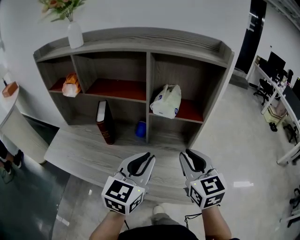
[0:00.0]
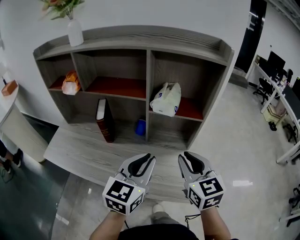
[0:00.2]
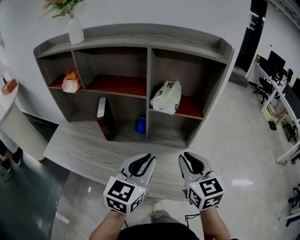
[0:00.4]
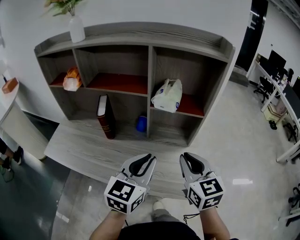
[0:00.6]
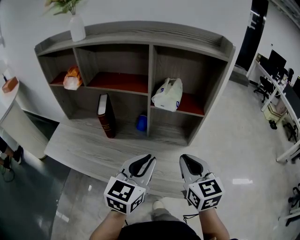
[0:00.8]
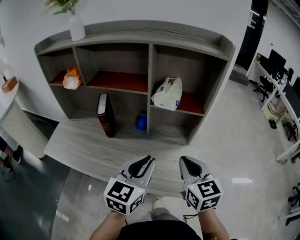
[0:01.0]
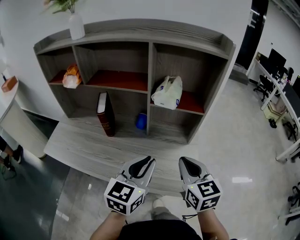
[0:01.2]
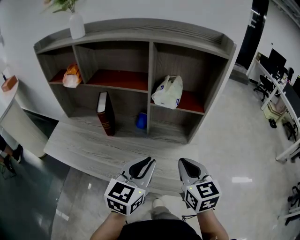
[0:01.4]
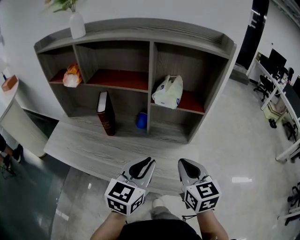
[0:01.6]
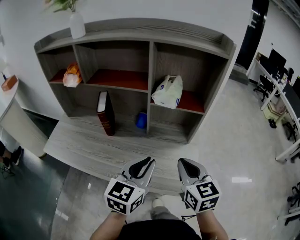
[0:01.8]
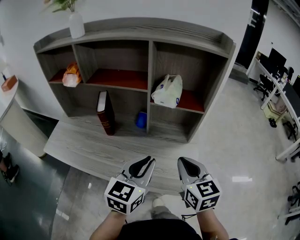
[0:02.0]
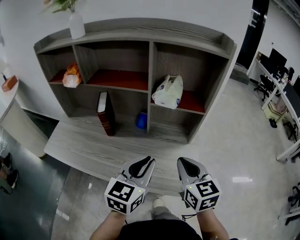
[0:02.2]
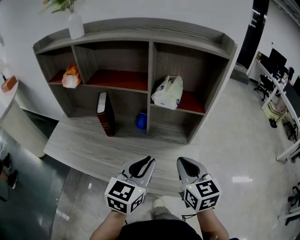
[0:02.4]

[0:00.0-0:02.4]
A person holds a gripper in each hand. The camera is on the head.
0.0 to 1.2 s: The right gripper ends up some 5 cm from where it was.
1.2 to 2.4 s: Neither gripper changes place.

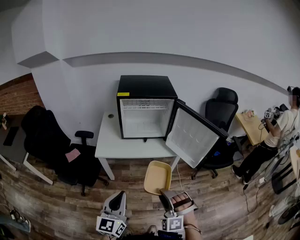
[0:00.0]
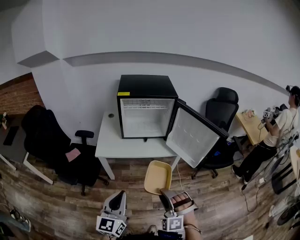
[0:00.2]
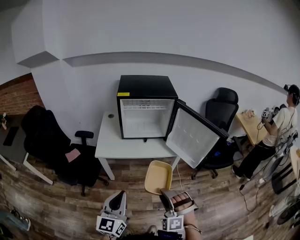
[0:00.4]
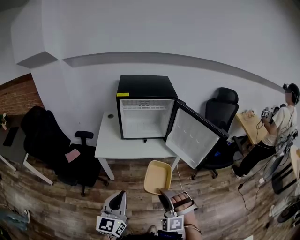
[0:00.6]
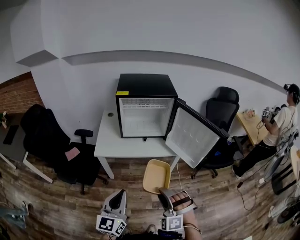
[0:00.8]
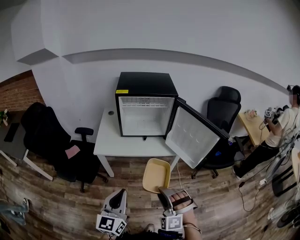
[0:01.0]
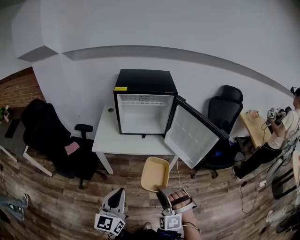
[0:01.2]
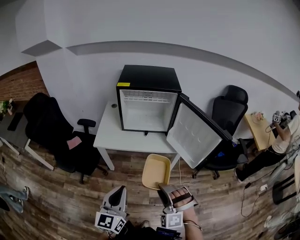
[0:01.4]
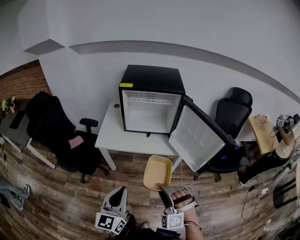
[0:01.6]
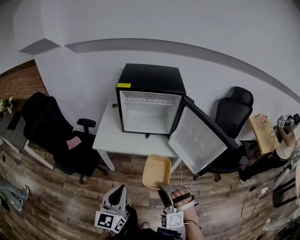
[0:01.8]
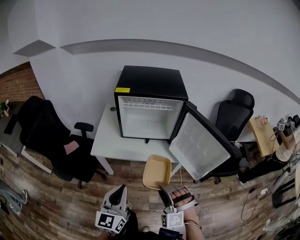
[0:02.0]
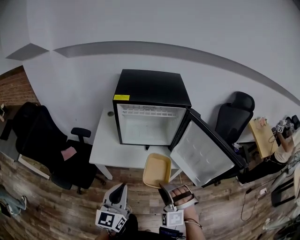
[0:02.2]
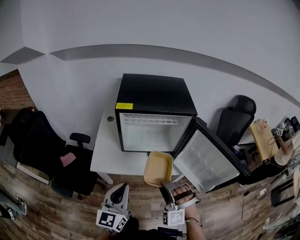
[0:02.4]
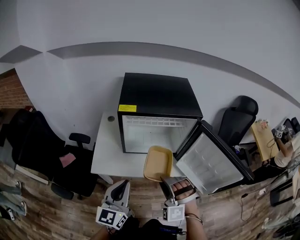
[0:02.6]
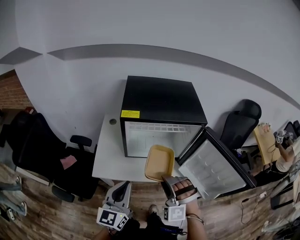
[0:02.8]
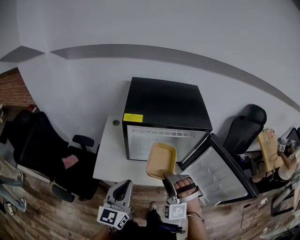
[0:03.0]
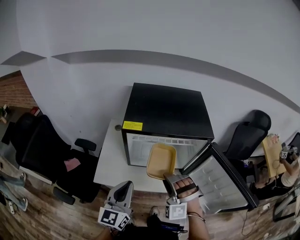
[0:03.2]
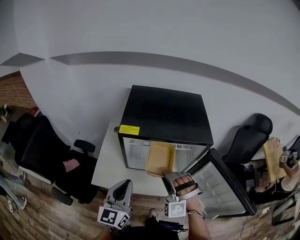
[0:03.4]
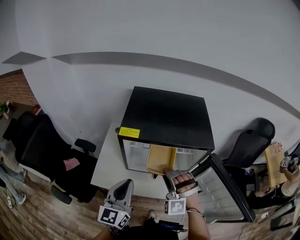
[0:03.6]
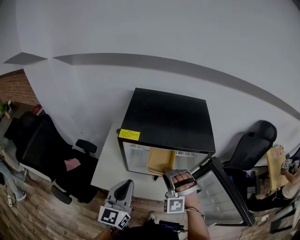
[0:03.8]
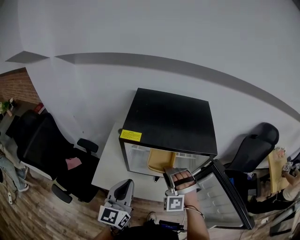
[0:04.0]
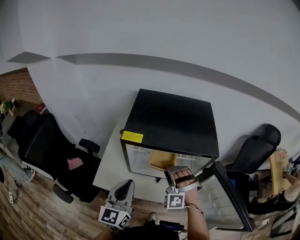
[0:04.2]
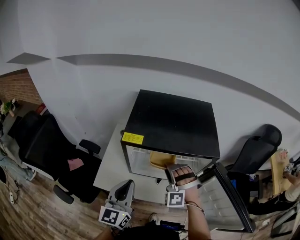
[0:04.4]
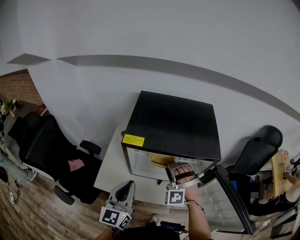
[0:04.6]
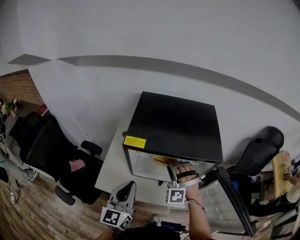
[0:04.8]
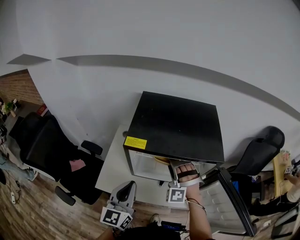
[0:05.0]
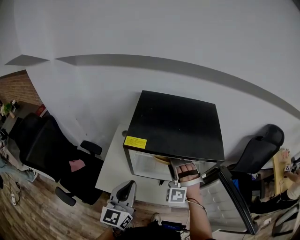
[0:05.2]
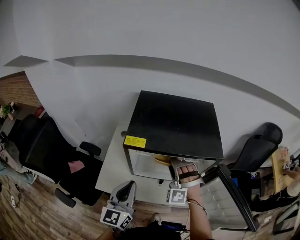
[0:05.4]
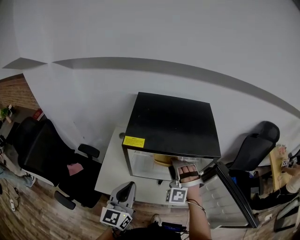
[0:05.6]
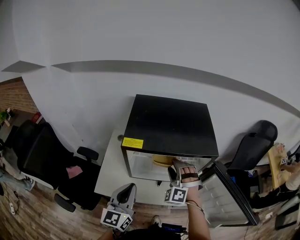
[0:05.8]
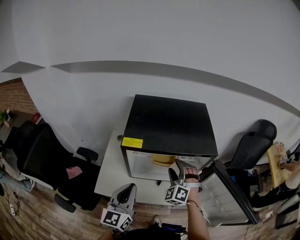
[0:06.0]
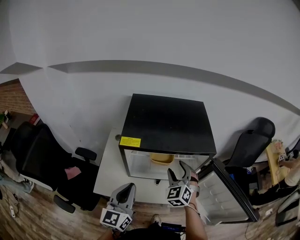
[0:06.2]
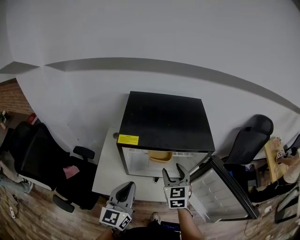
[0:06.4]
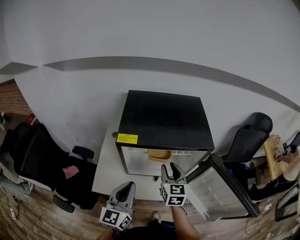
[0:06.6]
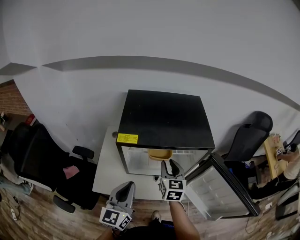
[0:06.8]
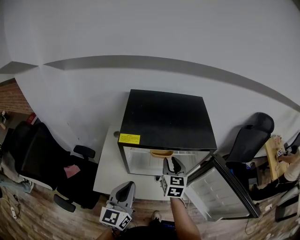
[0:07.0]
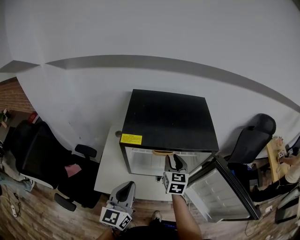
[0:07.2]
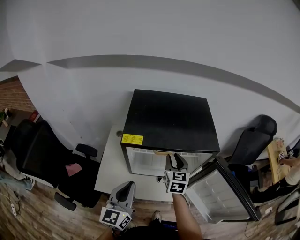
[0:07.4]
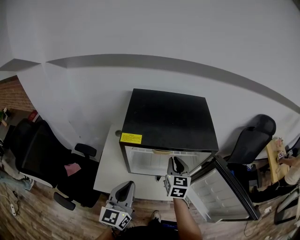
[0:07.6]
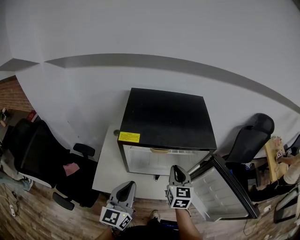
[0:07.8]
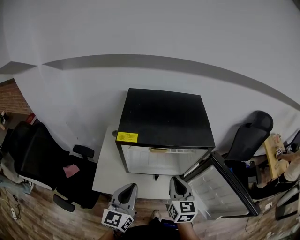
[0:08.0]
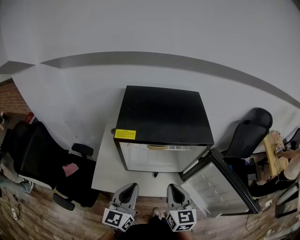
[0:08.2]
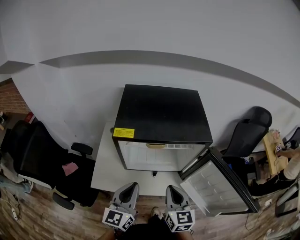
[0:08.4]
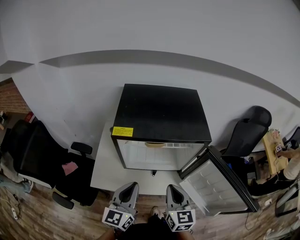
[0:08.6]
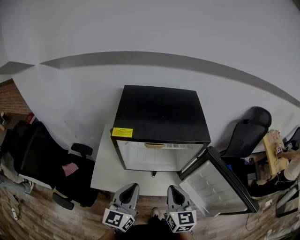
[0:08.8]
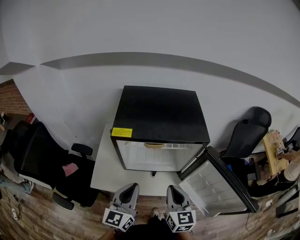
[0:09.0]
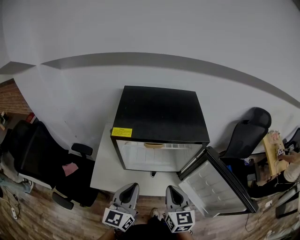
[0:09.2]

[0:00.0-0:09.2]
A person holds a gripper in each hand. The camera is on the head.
0.0 to 1.6 s: The left gripper shifts approximately 5 cm to the right, while the right gripper changes place by approximately 5 cm.
1.6 to 3.0 s: The grippers both shift forward by some 35 cm.
3.0 to 4.6 s: The left gripper heads forward, covering about 10 cm; the right gripper heads forward, covering approximately 20 cm.
4.6 to 6.2 s: The right gripper moves to the right, some 5 cm, and rolls clockwise, seen from behind, by some 50 degrees.
6.2 to 7.6 s: The right gripper twists roughly 40 degrees clockwise, seen from behind, and closes its fingers.
7.6 to 9.2 s: The left gripper shifts about 5 cm to the right. The right gripper moves backward, roughly 15 cm.

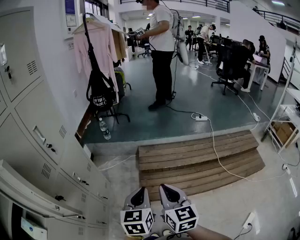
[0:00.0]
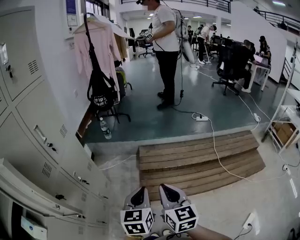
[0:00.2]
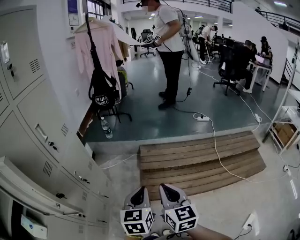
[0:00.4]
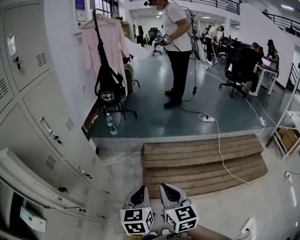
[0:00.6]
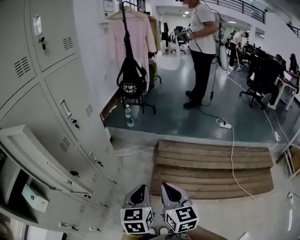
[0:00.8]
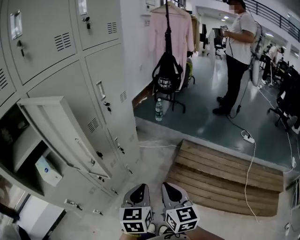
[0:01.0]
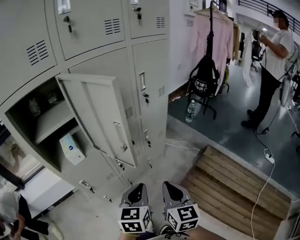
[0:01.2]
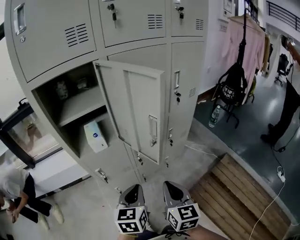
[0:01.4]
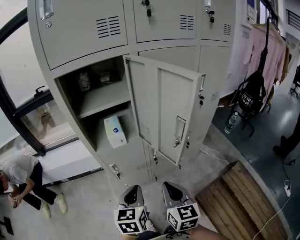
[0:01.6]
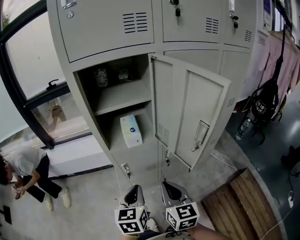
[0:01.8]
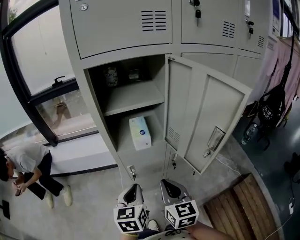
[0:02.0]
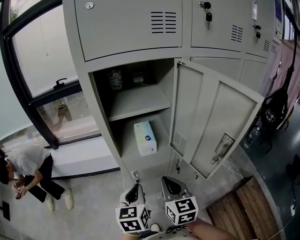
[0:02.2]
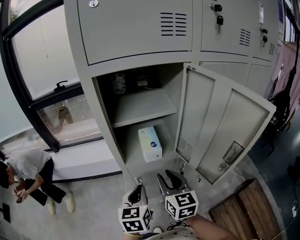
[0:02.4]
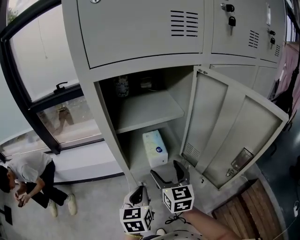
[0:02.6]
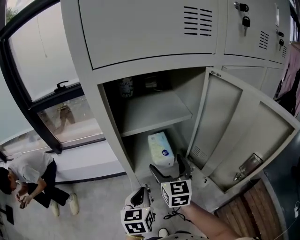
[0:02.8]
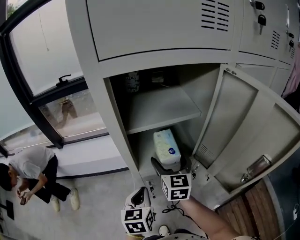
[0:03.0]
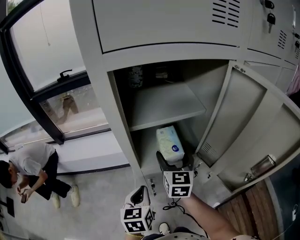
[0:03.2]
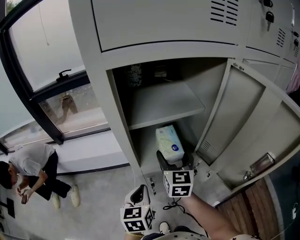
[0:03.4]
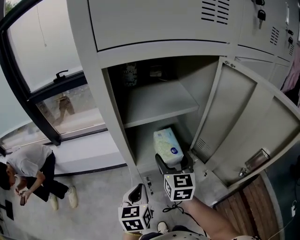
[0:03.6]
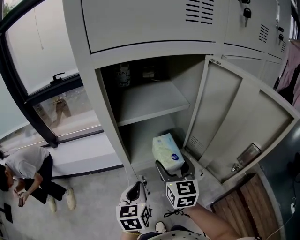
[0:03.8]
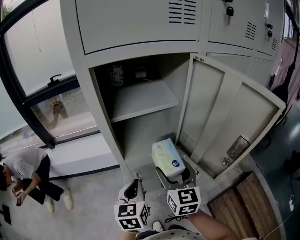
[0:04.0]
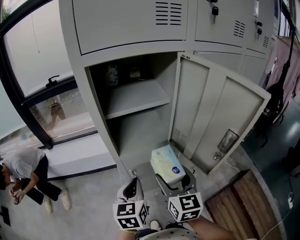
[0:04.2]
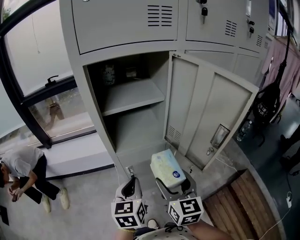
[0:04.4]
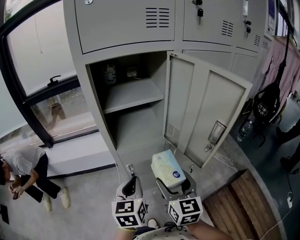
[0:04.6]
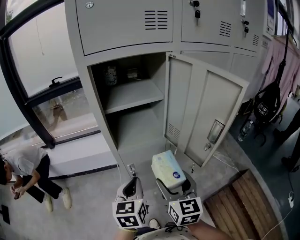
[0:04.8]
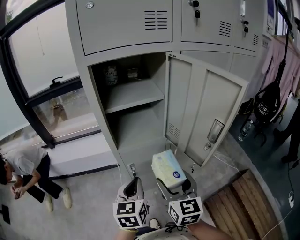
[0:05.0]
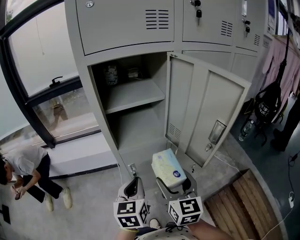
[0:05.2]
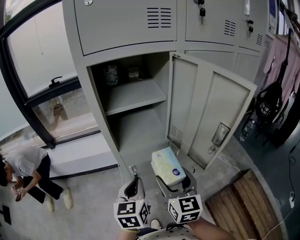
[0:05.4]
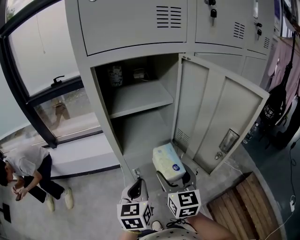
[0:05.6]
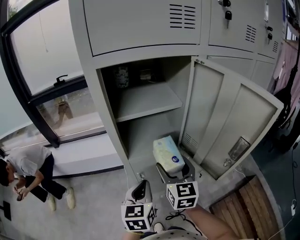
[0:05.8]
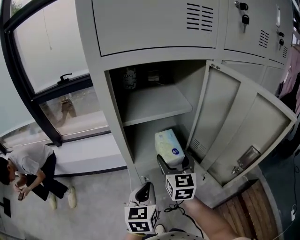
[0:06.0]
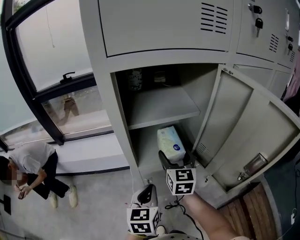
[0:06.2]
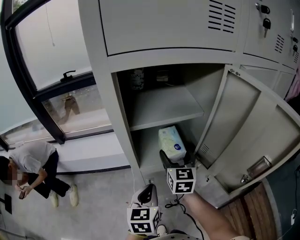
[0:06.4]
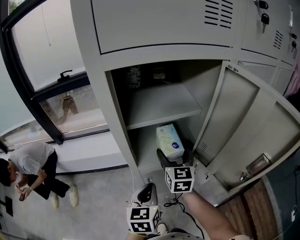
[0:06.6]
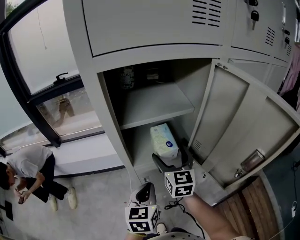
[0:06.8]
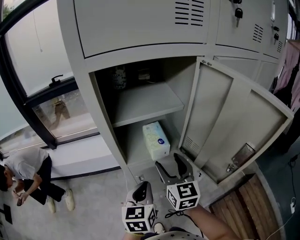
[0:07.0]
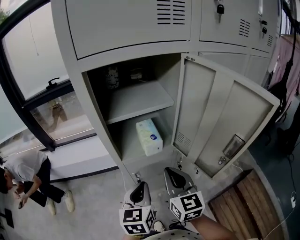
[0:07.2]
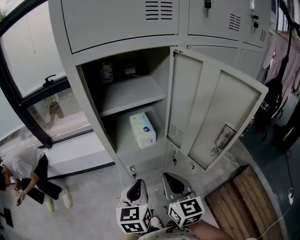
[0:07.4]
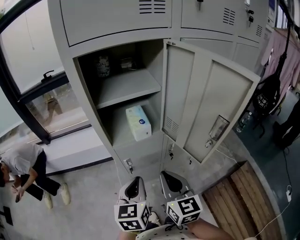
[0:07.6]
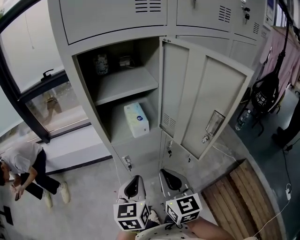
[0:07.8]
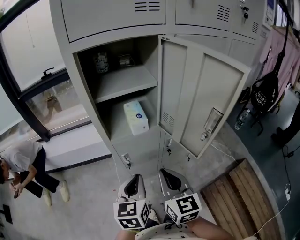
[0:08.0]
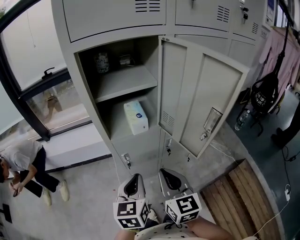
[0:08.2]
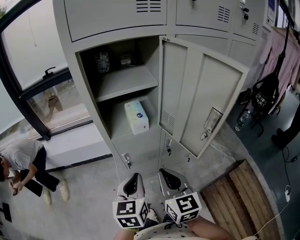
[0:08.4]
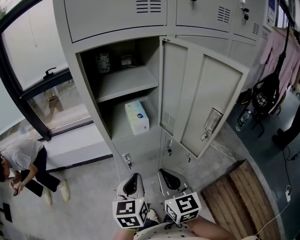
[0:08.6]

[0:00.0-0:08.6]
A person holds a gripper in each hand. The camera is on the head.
0.0 to 1.4 s: The right gripper changes place by approximately 30 cm, and rotates approximately 60 degrees. The left gripper ends up approximately 35 cm from where it was, and turns by about 60 degrees.
1.4 to 2.8 s: The right gripper goes about 35 cm forward and to the left, and opens; the left gripper travels to the left and forward by some 25 cm.
2.8 to 4.4 s: The right gripper travels backward and to the right by about 20 cm. The left gripper moves backward, approximately 5 cm.
4.4 to 5.8 s: The right gripper is displaced forward by some 10 cm.
5.8 to 7.2 s: The right gripper reaches approximately 10 cm forward, then returns, and closes up.
7.2 to 8.6 s: The two grippers go some 10 cm backward.

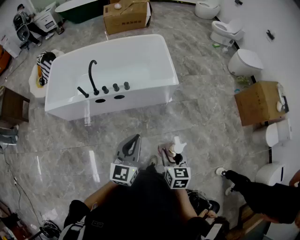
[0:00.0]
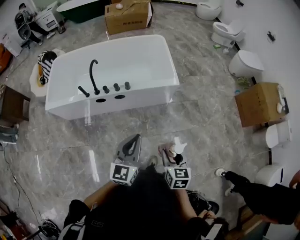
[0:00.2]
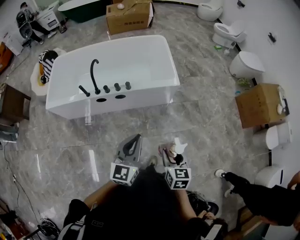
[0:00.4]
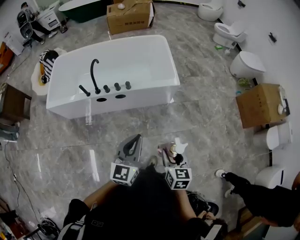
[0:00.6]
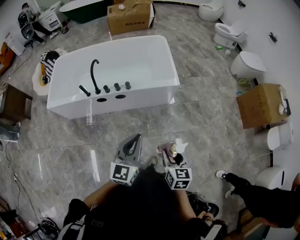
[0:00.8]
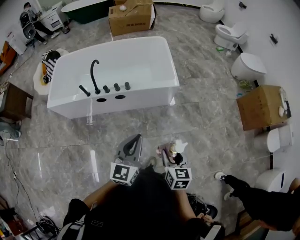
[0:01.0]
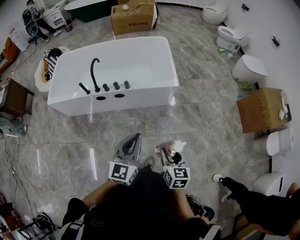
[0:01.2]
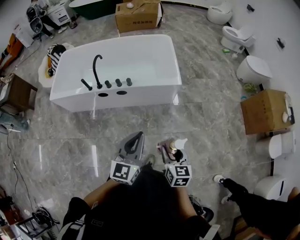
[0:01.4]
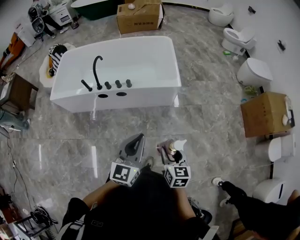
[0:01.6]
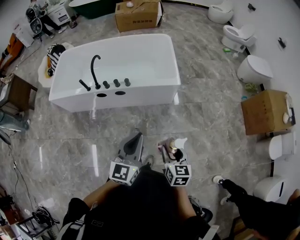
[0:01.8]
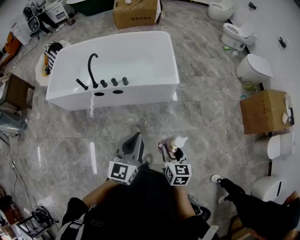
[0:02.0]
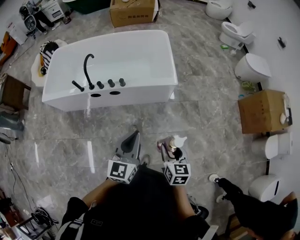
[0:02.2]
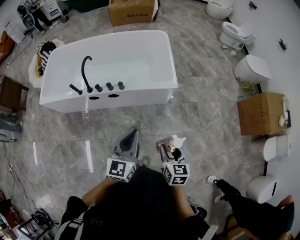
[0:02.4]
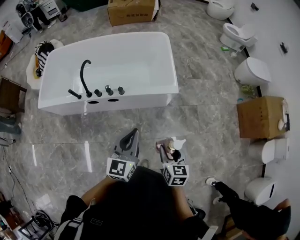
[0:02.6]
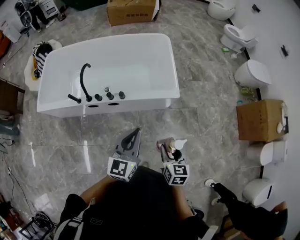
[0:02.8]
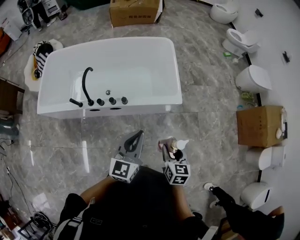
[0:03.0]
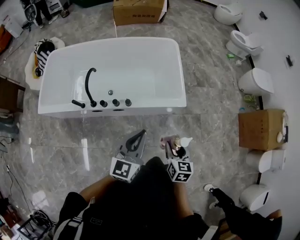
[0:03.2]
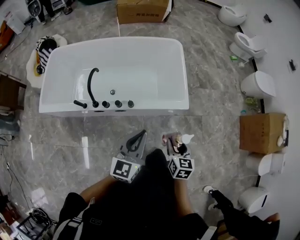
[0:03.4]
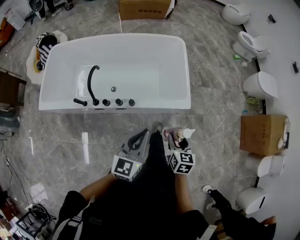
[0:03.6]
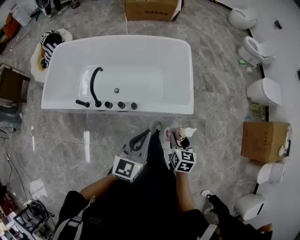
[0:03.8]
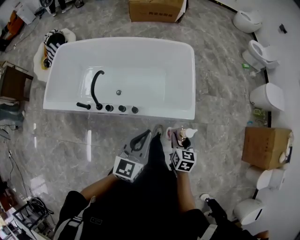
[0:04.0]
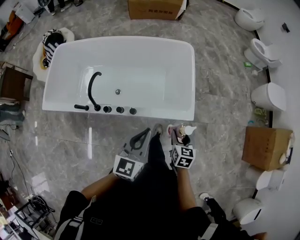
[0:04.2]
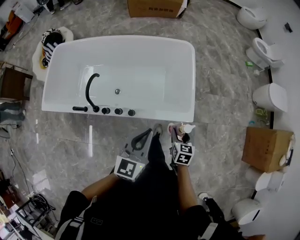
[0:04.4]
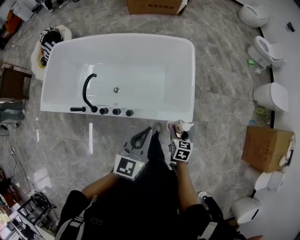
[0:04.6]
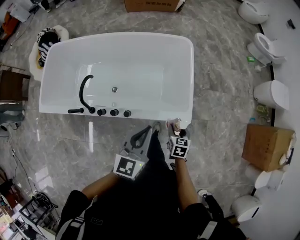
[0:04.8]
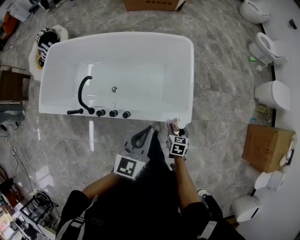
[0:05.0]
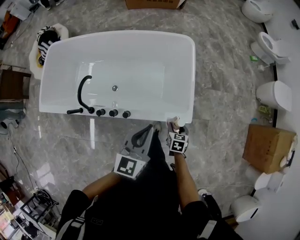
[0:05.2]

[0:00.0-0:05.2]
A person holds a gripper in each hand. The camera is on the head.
0.0 to 1.8 s: The grippers both shift to the right by roughly 10 cm.
1.8 to 3.4 s: The left gripper goes approximately 35 cm forward and to the left. Meanwhile the right gripper moves forward, some 35 cm.
3.4 to 5.2 s: The left gripper goes roughly 25 cm forward. The right gripper travels forward and downward by approximately 35 cm.
